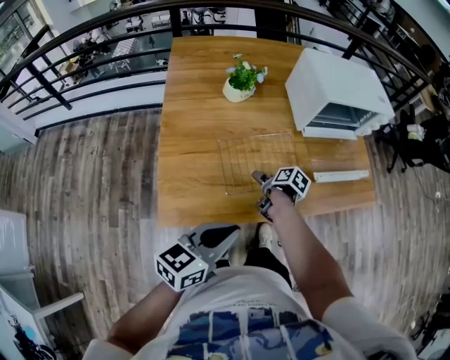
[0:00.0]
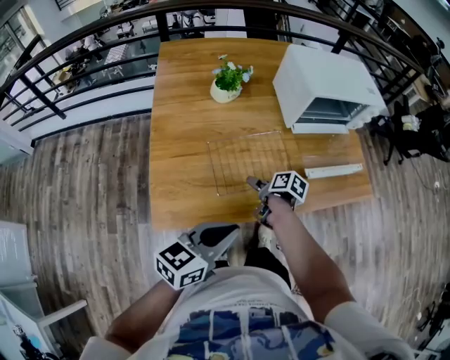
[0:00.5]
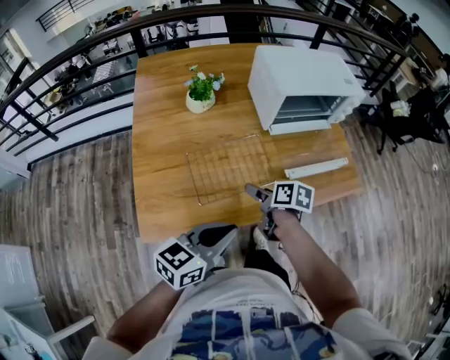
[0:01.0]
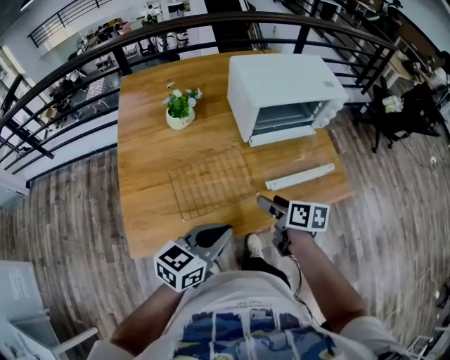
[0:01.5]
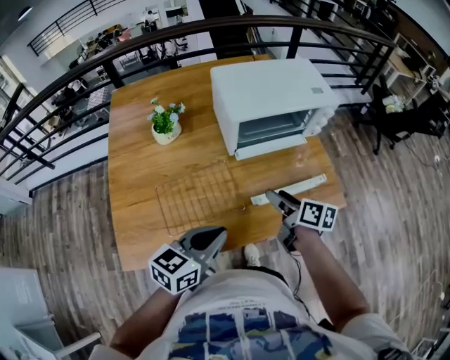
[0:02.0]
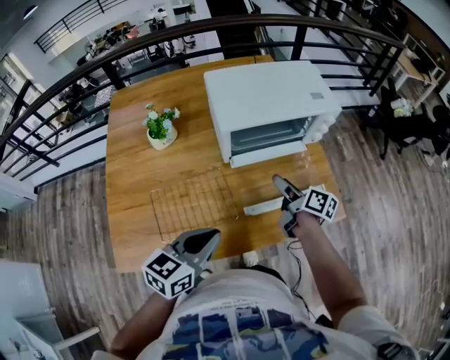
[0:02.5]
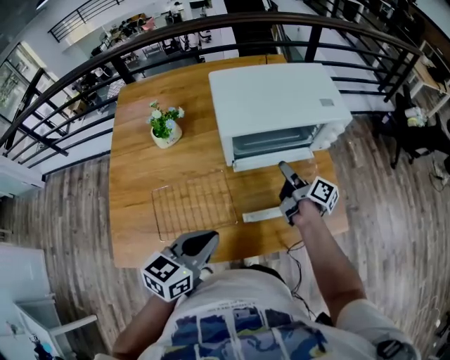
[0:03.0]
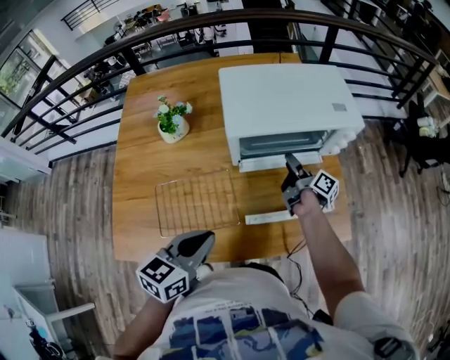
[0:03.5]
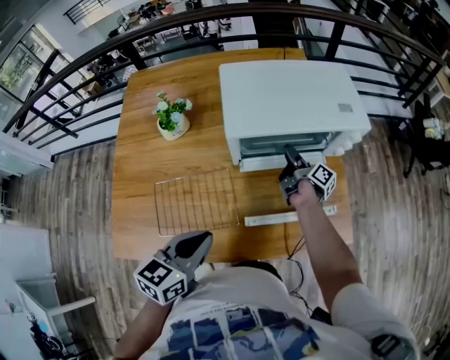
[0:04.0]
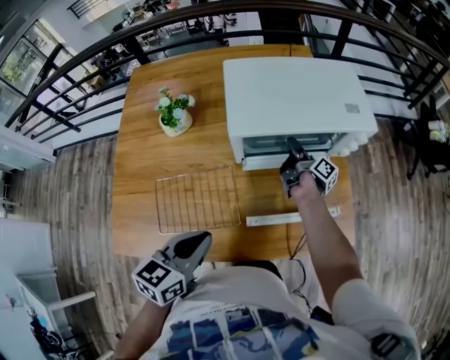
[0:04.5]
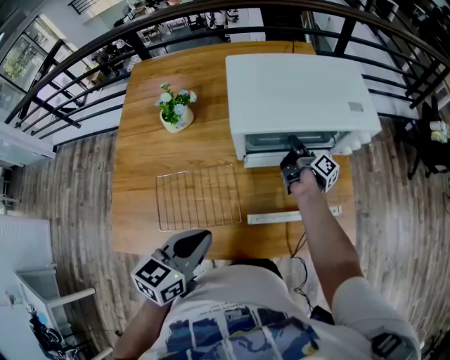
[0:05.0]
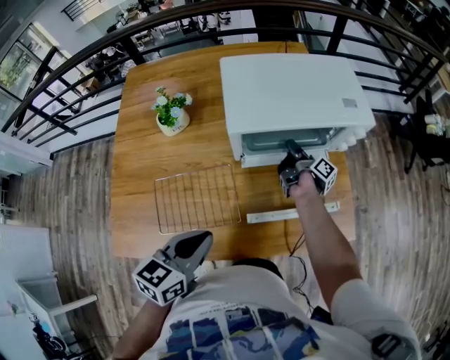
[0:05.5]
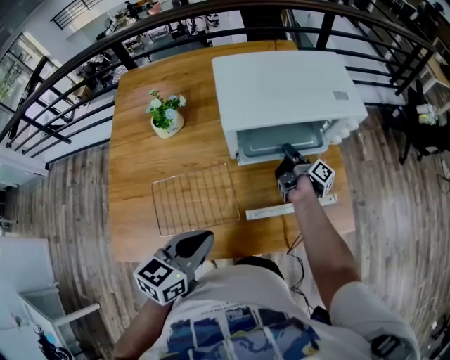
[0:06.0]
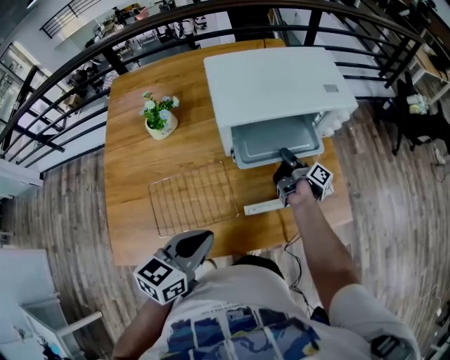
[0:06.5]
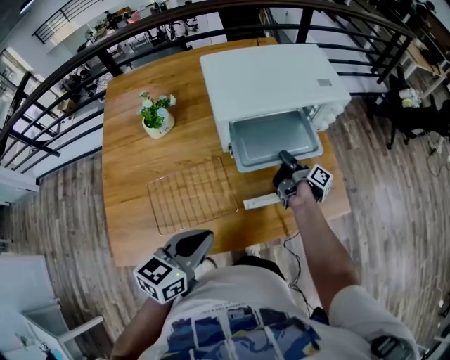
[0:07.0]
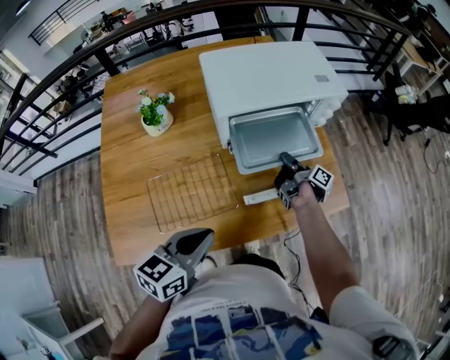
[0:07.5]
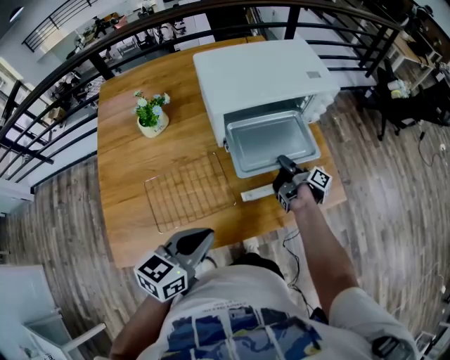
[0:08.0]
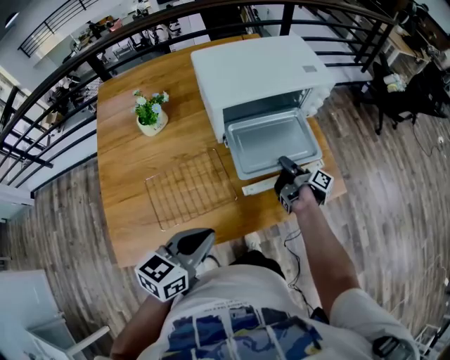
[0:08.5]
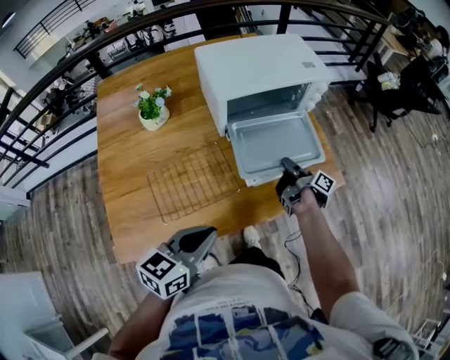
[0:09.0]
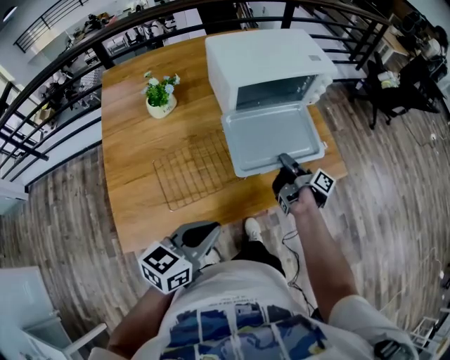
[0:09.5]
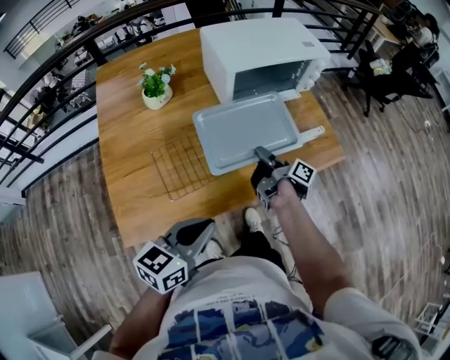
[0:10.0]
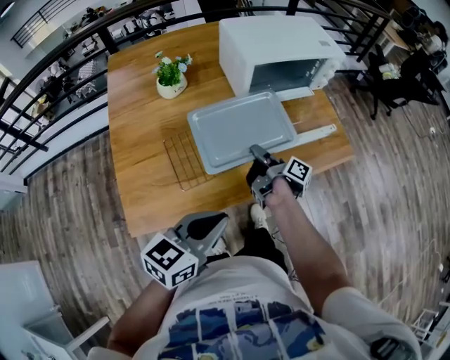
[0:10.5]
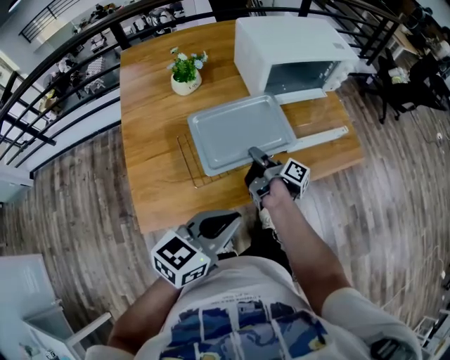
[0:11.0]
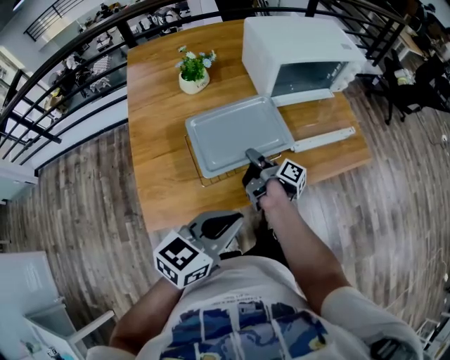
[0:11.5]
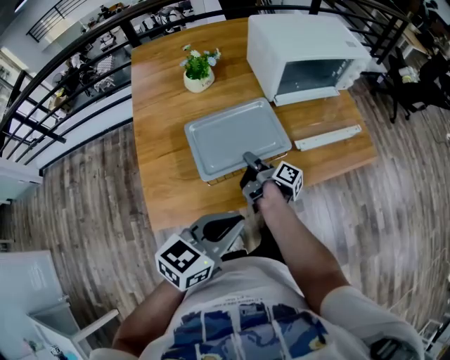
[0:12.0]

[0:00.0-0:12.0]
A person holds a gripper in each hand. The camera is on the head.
0:00.0 to 0:02.0: The left gripper changes place by about 25 cm.
0:02.0 to 0:04.0: The left gripper ends up roughly 10 cm from where it was.
0:06.0 to 0:08.0: The left gripper shifts by about 5 cm.
0:08.0 to 0:10.0: The left gripper shifts by about 15 cm.
0:10.0 to 0:12.0: The left gripper ends up approximately 5 cm from where it was.

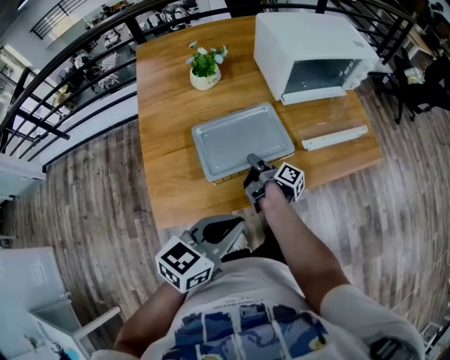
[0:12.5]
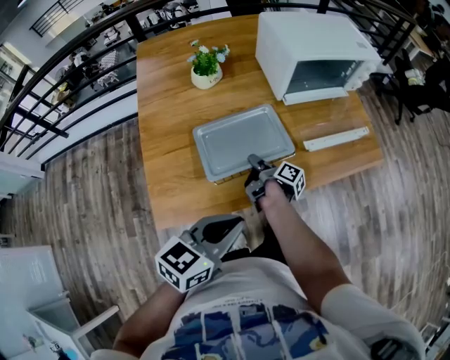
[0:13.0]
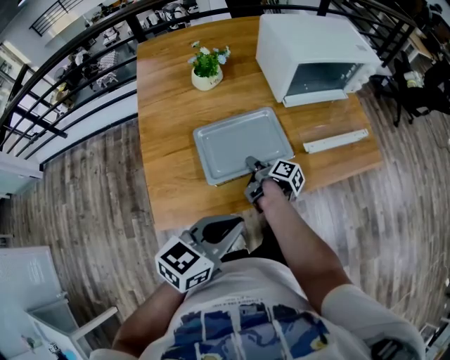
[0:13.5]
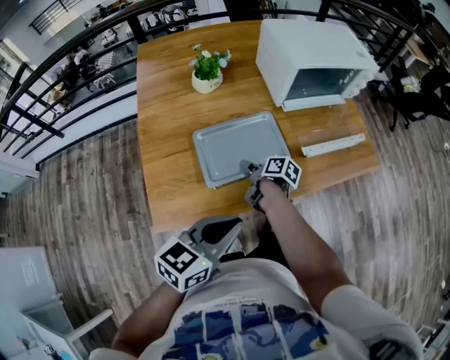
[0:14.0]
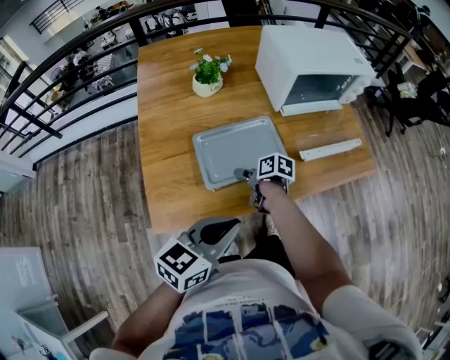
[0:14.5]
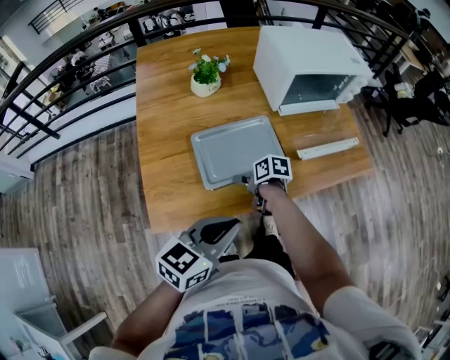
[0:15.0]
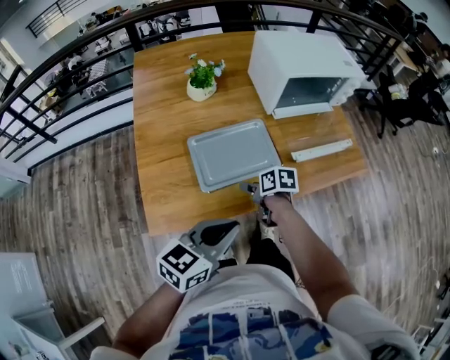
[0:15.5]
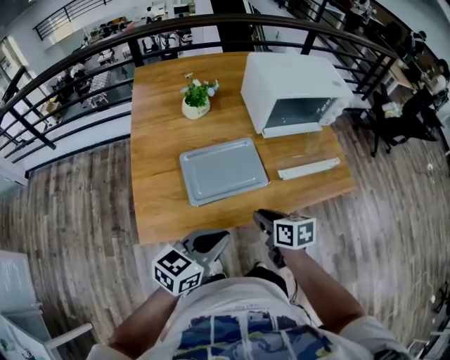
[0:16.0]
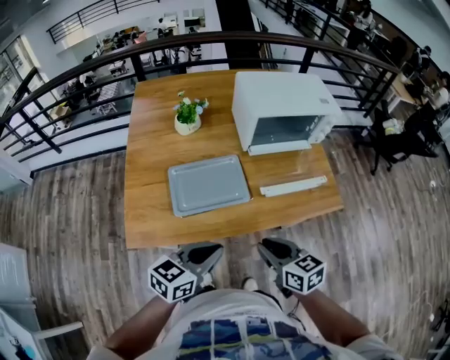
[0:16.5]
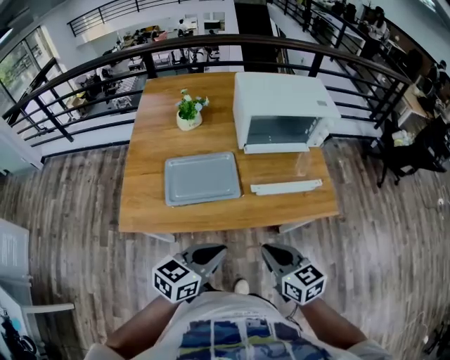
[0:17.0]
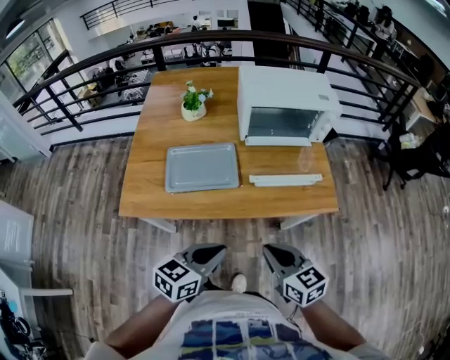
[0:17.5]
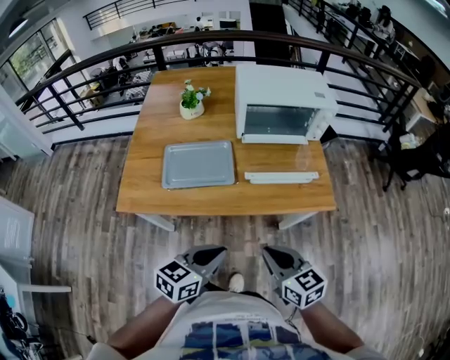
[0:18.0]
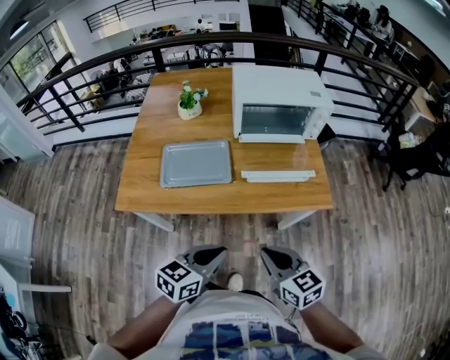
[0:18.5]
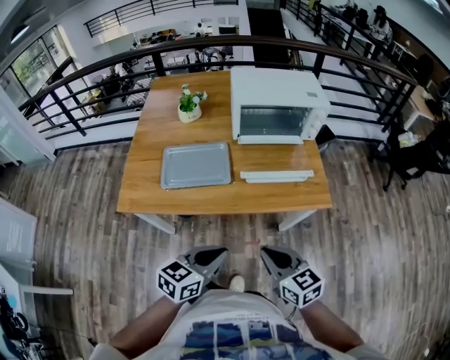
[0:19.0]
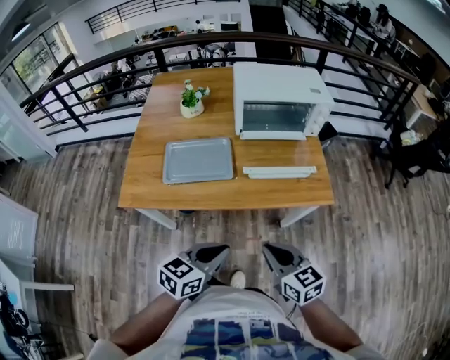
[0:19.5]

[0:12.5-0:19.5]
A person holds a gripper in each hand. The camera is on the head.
0:16.0 to 0:17.5: The left gripper shifts by about 20 cm.
0:17.5 to 0:19.5: The left gripper ends up roughly 5 cm from where it was.

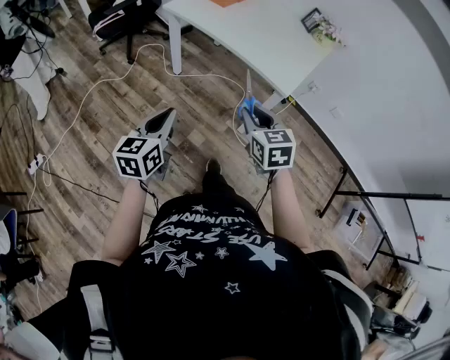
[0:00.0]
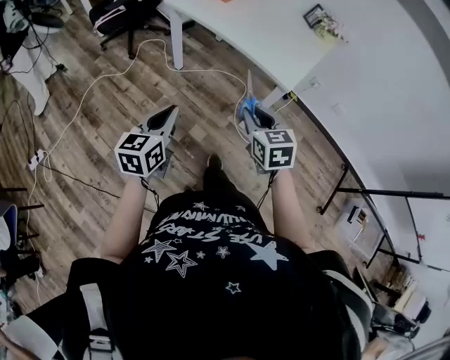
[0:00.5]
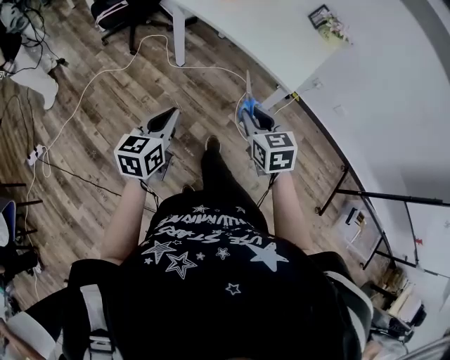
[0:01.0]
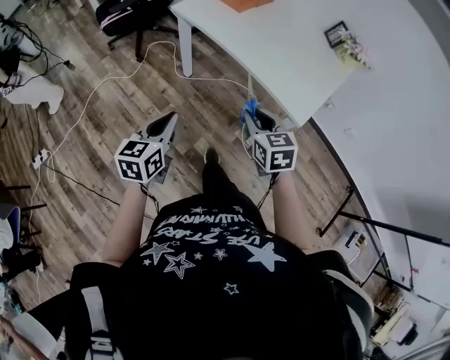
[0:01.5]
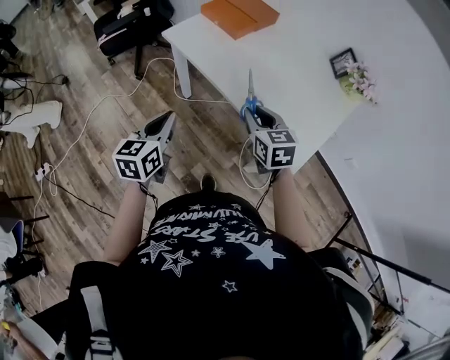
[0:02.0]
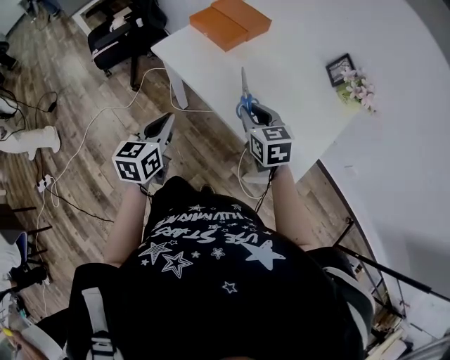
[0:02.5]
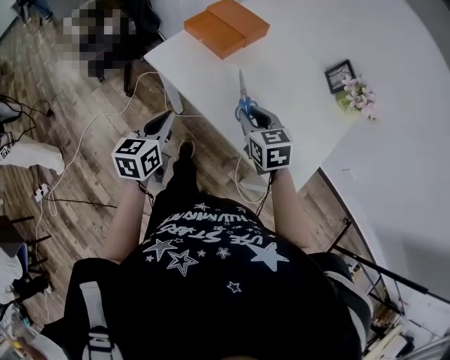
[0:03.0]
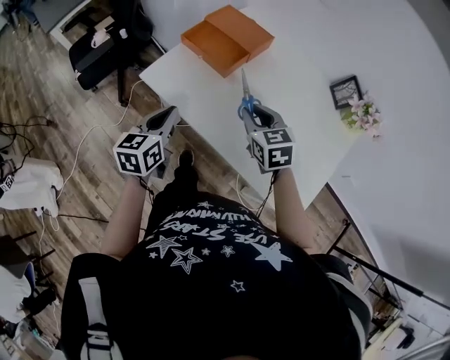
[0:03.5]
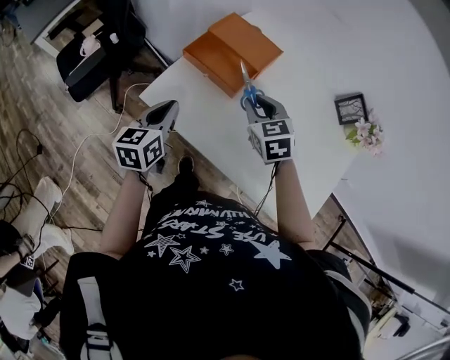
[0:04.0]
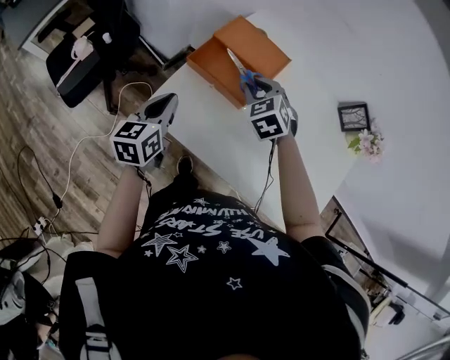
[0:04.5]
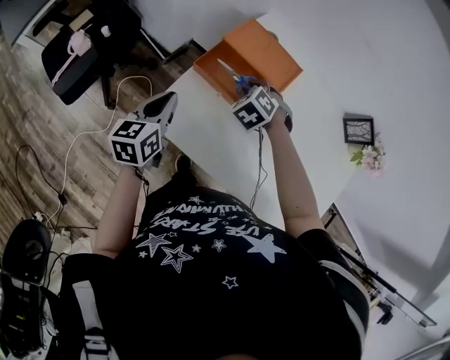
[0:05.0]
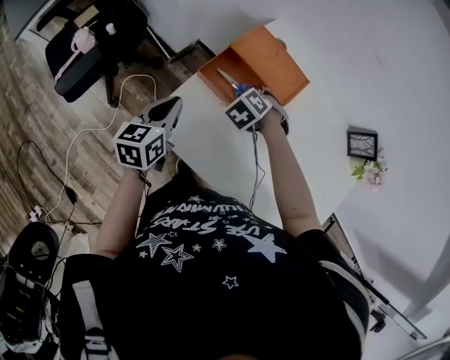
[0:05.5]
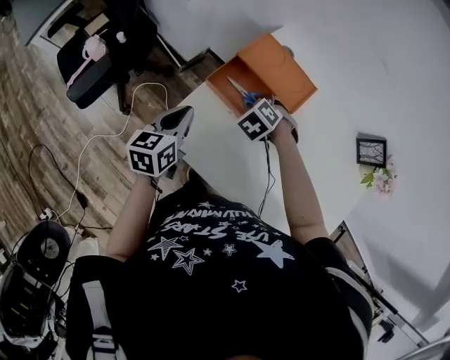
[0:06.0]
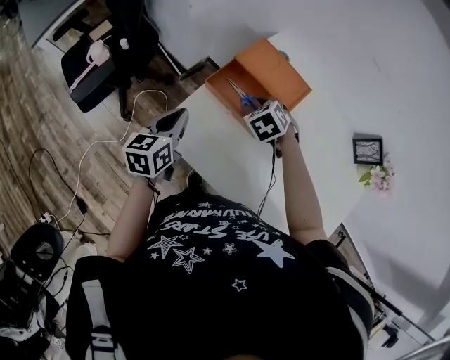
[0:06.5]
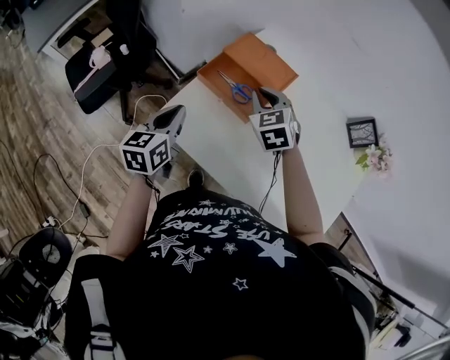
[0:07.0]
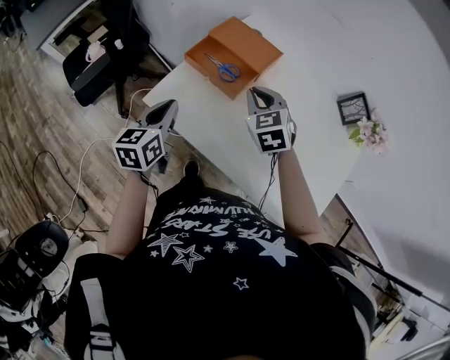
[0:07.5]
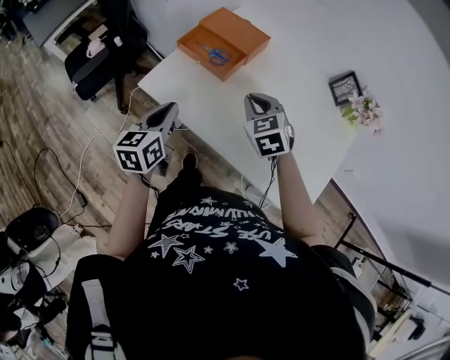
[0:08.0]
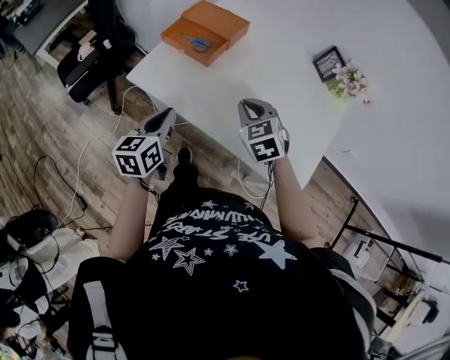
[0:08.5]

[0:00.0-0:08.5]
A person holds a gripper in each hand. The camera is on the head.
0:00.0 to 0:02.0: The two grippers go some 35 cm forward.
0:02.0 to 0:04.0: The pair of grippers is taken forward, about 40 cm.
0:04.0 to 0:06.5: The left gripper heads forward and to the left, covering roughly 15 cm. The right gripper goes roughly 20 cm forward, to the left and downward, and swivels about 30 degrees.
0:06.5 to 0:08.5: The grippers both shift backward and to the right by some 40 cm. The right gripper turns by about 30 degrees.
